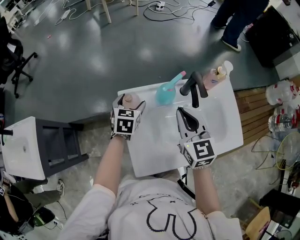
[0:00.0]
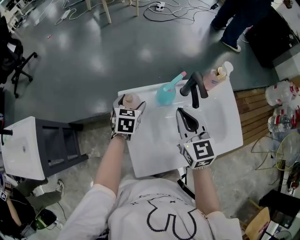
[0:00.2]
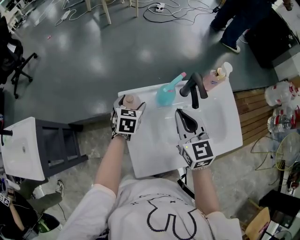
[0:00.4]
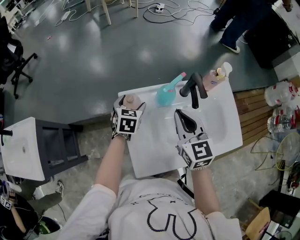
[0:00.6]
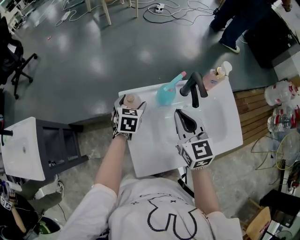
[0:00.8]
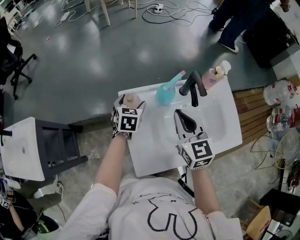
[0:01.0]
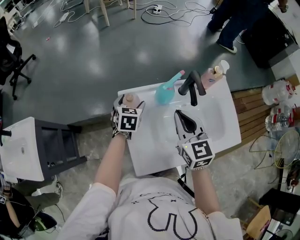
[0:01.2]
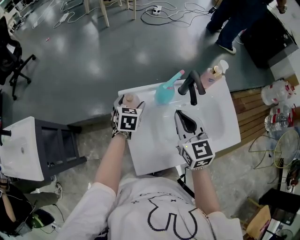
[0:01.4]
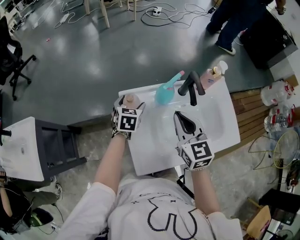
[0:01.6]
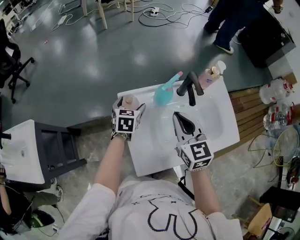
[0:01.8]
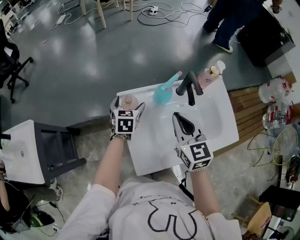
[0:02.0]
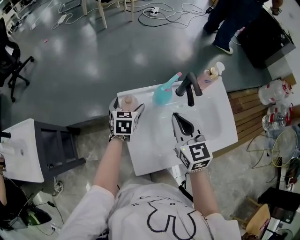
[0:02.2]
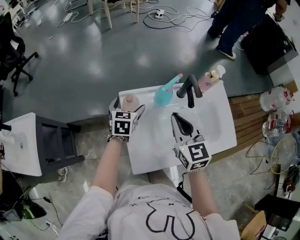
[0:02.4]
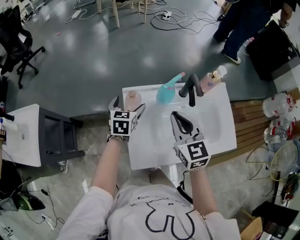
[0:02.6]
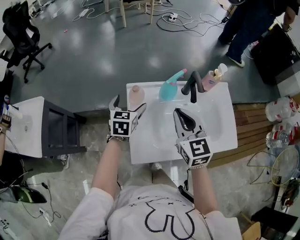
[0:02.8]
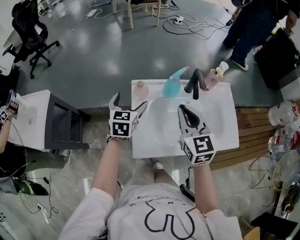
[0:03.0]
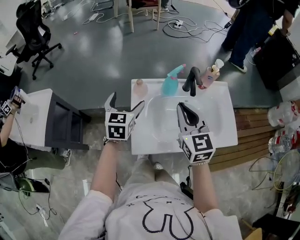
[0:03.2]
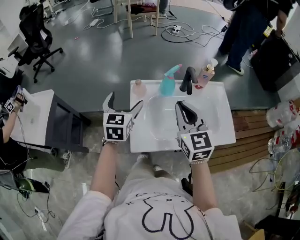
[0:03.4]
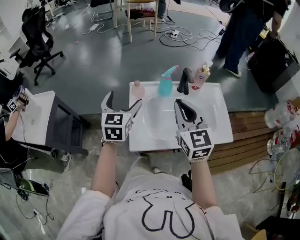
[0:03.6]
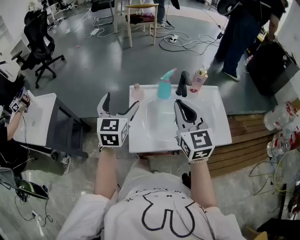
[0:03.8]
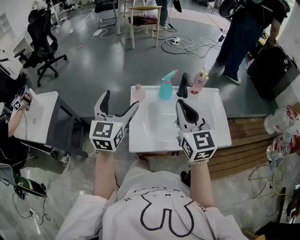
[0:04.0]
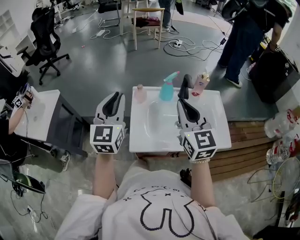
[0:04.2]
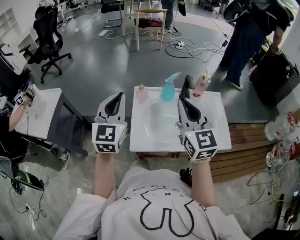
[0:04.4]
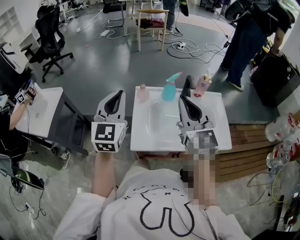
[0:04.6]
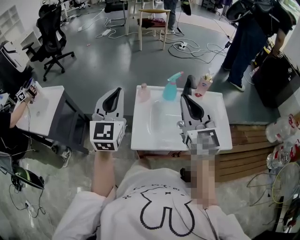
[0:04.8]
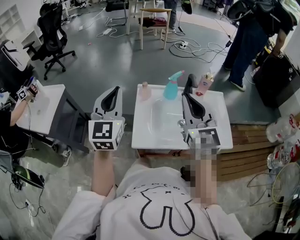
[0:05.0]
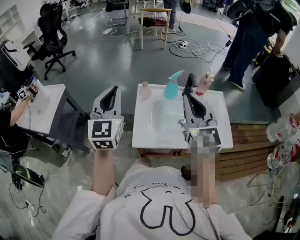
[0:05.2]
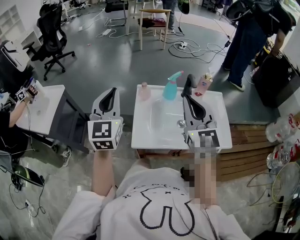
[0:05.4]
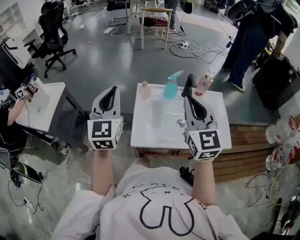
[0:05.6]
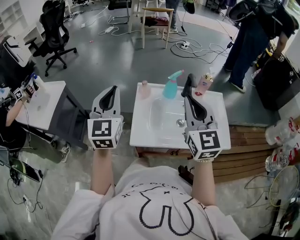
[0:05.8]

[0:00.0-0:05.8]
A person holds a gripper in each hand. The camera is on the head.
0:00.0 to 0:01.4: The grippers move only a little.
0:01.4 to 0:02.8: The left gripper is displaced upward and backward by approximately 10 cm.
0:02.8 to 0:04.4: The right gripper moves upward and backward, about 15 cm; the left gripper goes approximately 30 cm upward and backward, tilts its fingers approximately 30 degrees upward, and closes.
0:04.4 to 0:05.8: The grippers stay close to where they were, moving slightly.

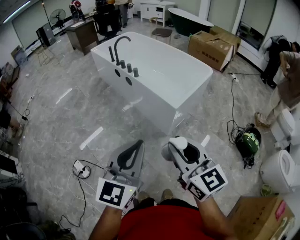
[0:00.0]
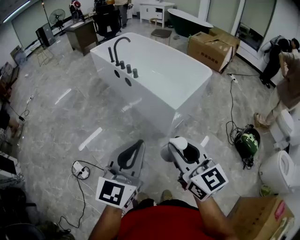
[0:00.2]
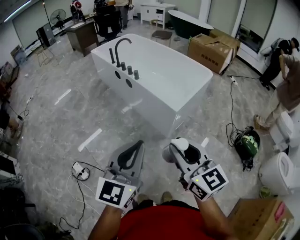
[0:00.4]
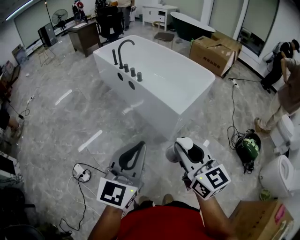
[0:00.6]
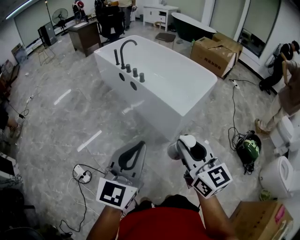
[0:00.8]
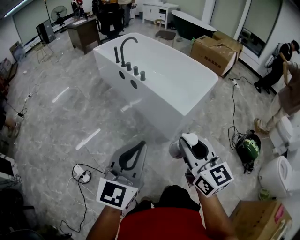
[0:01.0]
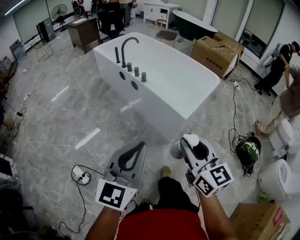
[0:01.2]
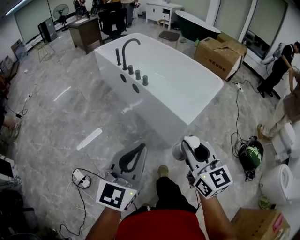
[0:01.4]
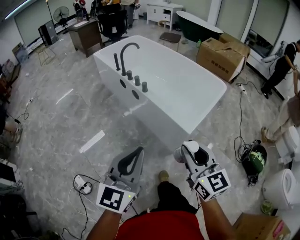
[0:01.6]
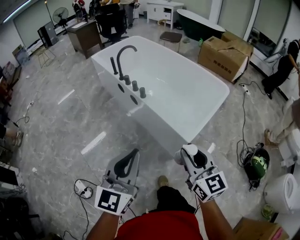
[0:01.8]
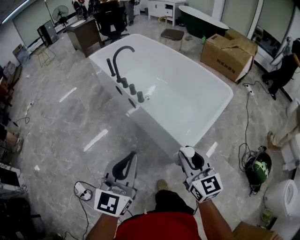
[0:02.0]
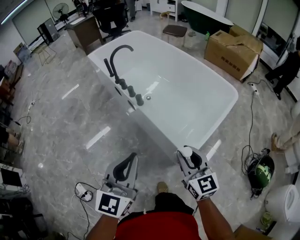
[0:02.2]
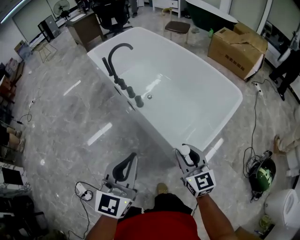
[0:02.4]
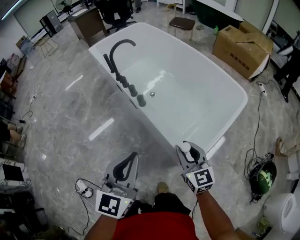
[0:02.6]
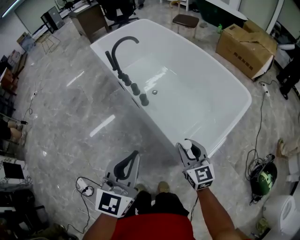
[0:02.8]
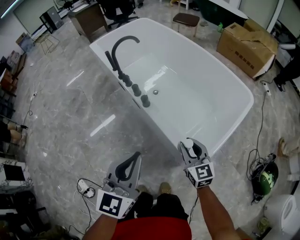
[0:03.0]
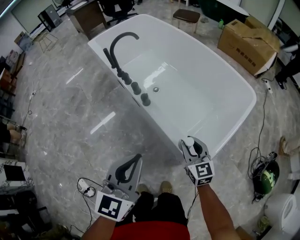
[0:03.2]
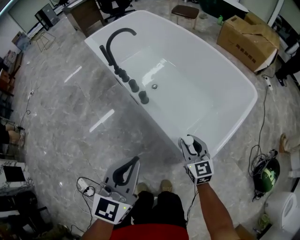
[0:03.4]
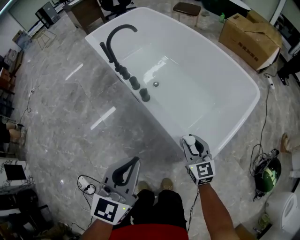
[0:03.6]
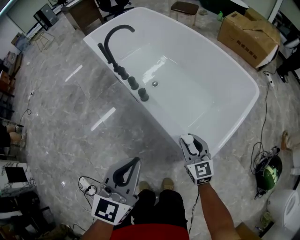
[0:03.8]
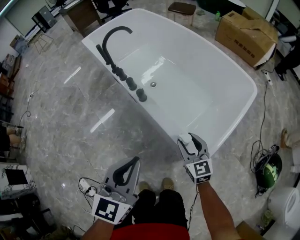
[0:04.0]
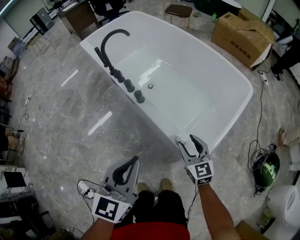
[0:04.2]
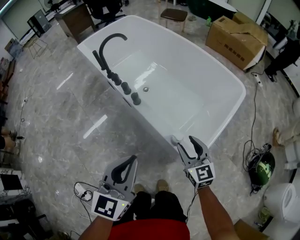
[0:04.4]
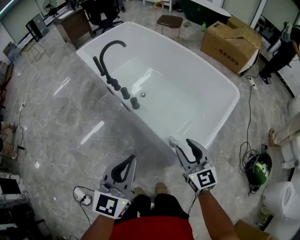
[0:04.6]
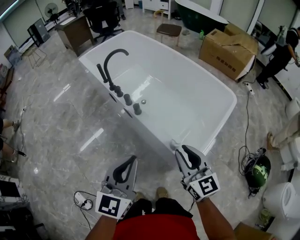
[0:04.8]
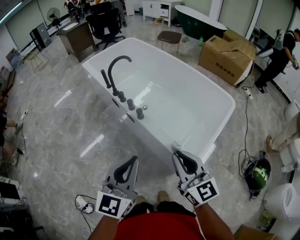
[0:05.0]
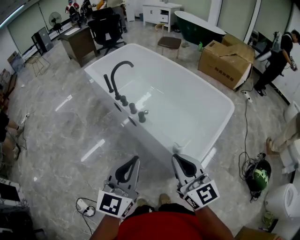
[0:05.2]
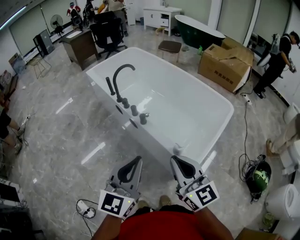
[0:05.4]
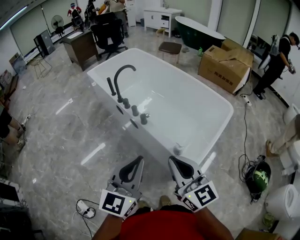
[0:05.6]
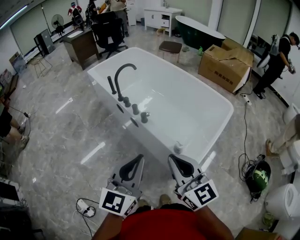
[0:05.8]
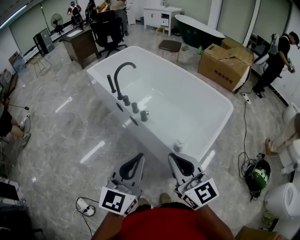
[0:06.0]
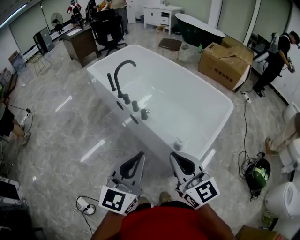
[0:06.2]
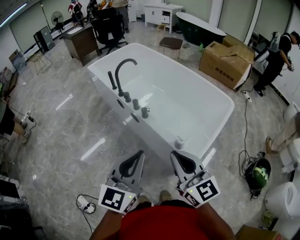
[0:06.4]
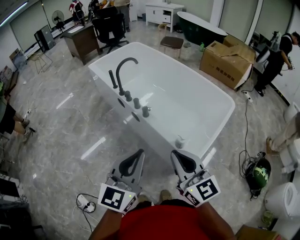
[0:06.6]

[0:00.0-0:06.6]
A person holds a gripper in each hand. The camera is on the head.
0:00.0 to 0:01.6: Both grippers move forward, some 20 cm.
0:01.6 to 0:03.2: The left gripper shifts about 30 cm forward. The right gripper heads forward and downward, covering about 40 cm.
0:03.2 to 0:05.0: The left gripper shifts approximately 10 cm upward; the right gripper travels upward and backward by roughly 25 cm, and opens, then closes again.
0:05.0 to 0:06.6: The left gripper moves about 5 cm; the right gripper travels backward by roughly 5 cm.

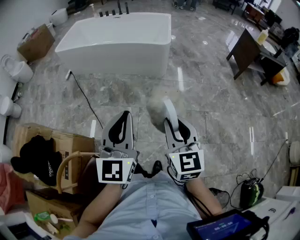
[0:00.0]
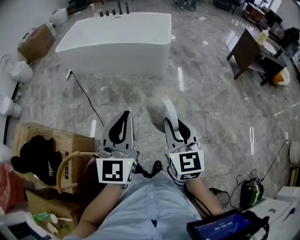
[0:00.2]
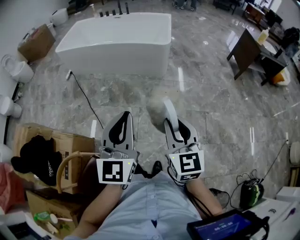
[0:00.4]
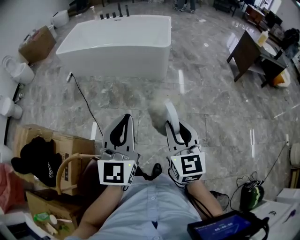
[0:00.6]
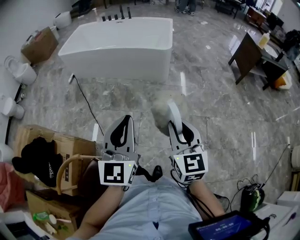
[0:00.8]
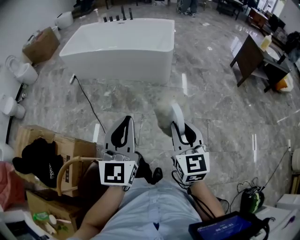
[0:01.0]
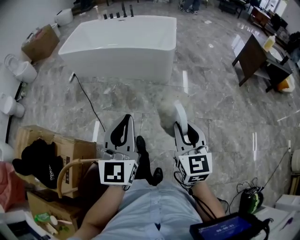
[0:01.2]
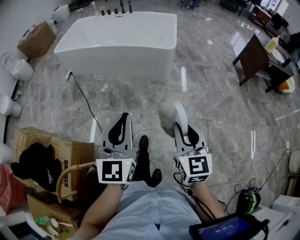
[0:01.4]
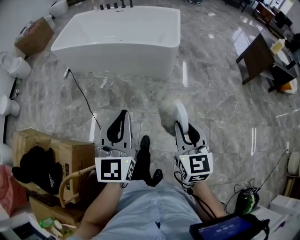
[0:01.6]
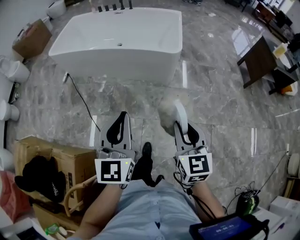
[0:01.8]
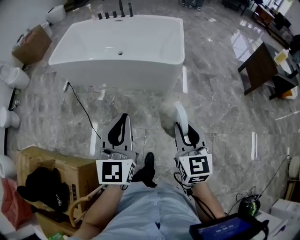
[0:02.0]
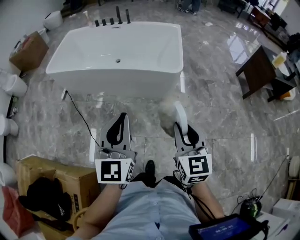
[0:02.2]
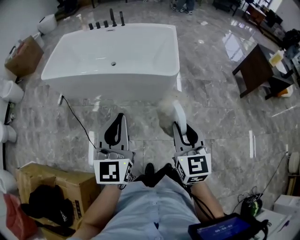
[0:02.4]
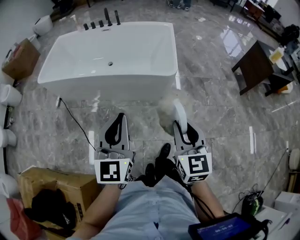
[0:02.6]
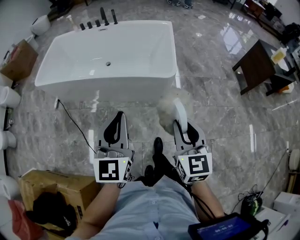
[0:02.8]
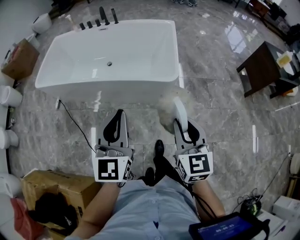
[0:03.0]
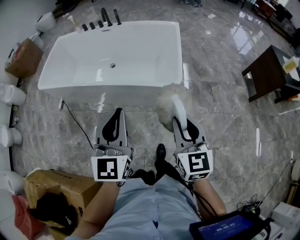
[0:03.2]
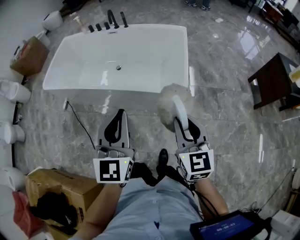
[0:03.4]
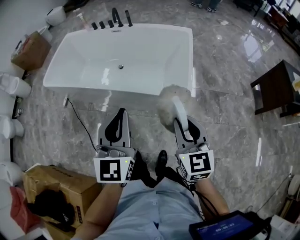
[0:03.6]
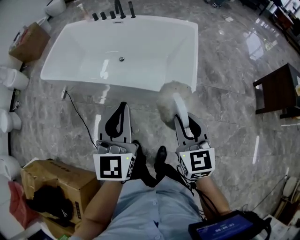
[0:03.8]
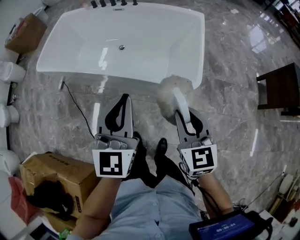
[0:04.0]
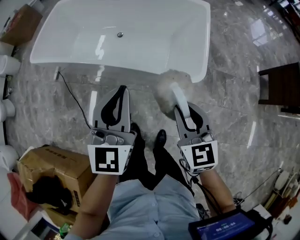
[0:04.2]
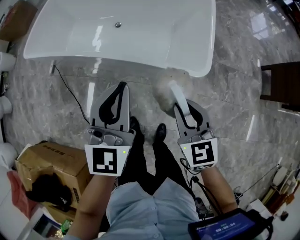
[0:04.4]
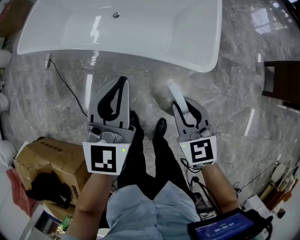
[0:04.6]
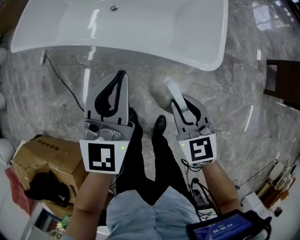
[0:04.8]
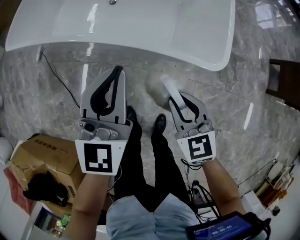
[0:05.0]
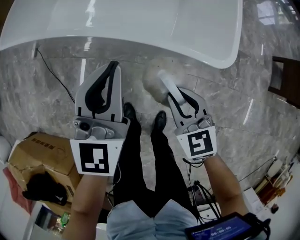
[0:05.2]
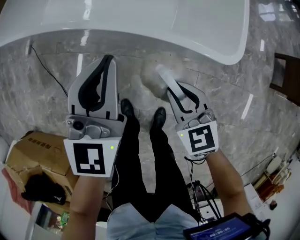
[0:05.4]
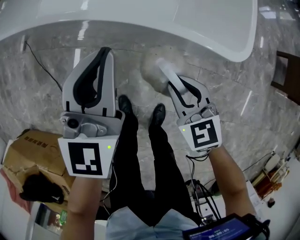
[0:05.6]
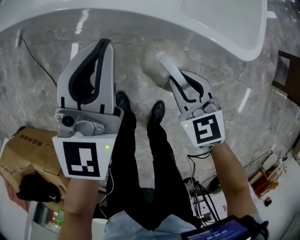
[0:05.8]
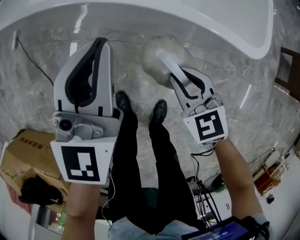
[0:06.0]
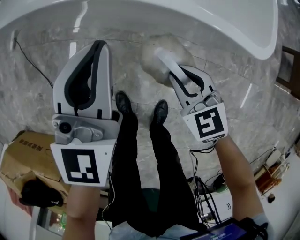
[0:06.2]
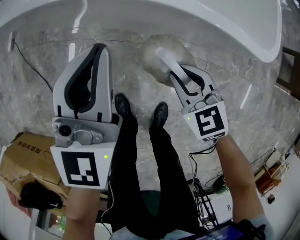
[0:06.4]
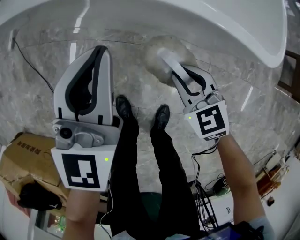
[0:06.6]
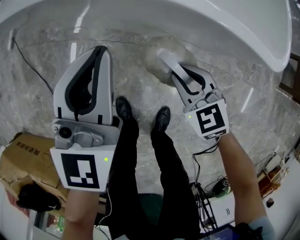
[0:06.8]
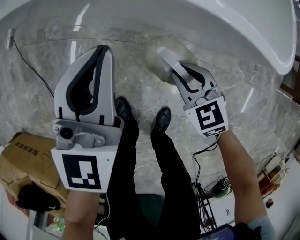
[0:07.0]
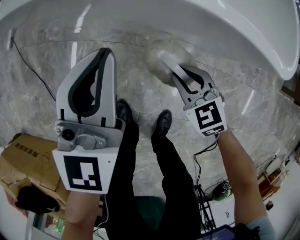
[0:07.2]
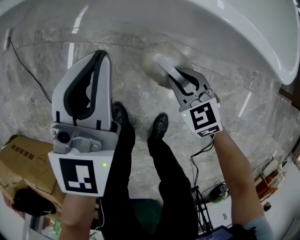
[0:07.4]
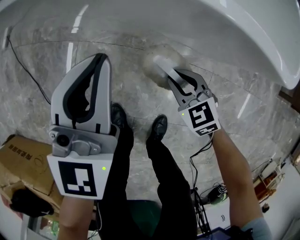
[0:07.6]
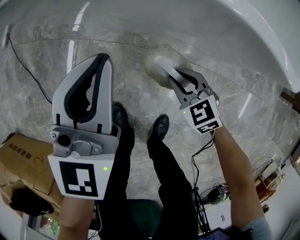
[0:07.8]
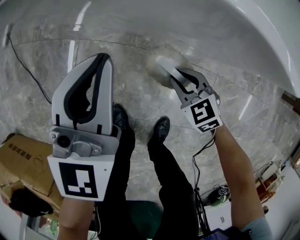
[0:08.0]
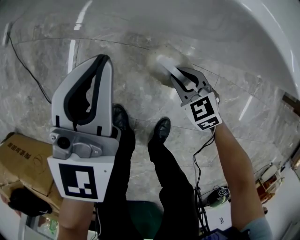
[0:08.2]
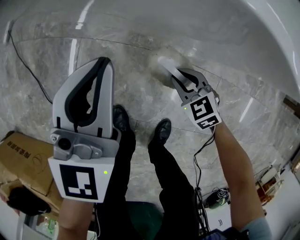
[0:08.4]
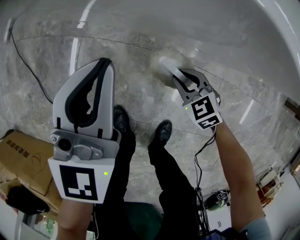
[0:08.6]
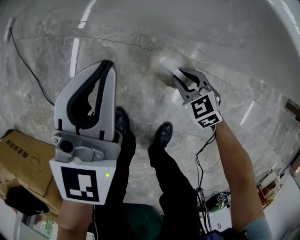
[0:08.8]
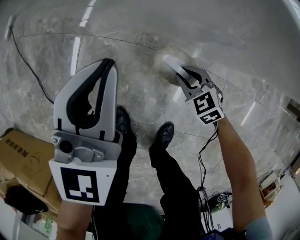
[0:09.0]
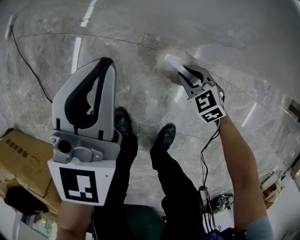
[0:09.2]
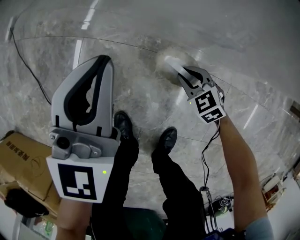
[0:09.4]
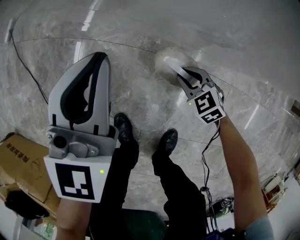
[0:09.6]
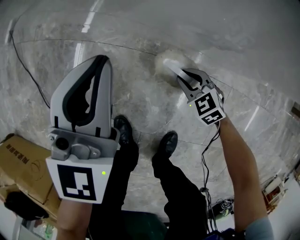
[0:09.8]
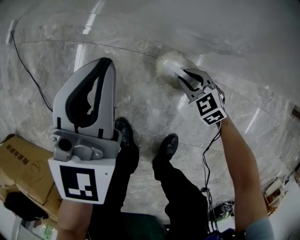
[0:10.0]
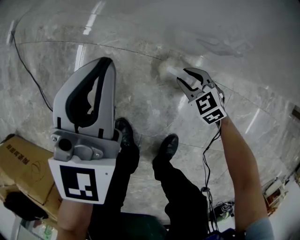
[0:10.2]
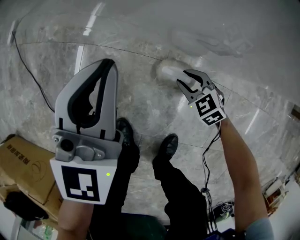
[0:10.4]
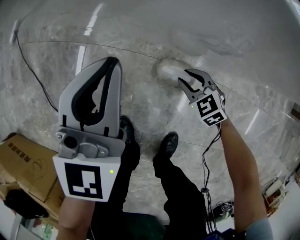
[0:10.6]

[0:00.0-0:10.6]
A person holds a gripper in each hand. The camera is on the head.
0:00.0 to 0:01.6: Both grippers move forward, about 20 cm.
0:01.6 to 0:03.0: Both grippers travel together forward, roughly 40 cm.
0:03.0 to 0:04.6: The two grippers go approximately 30 cm forward and downward. The right gripper rotates roughly 30 degrees.
0:04.6 to 0:06.0: Both grippers travel together downward, some 30 cm.
0:06.0 to 0:07.6: Both grippers move downward, roughly 15 cm.
0:07.6 to 0:09.0: The left gripper goes roughly 5 cm downward, while the right gripper goes some 15 cm downward.
0:09.0 to 0:10.6: There are only small adjustments of the grippers.

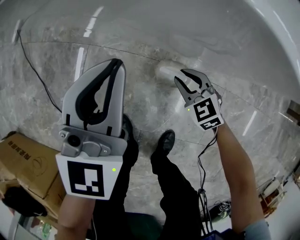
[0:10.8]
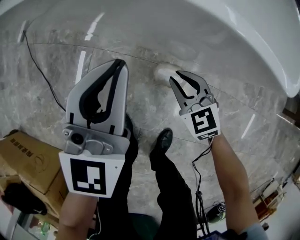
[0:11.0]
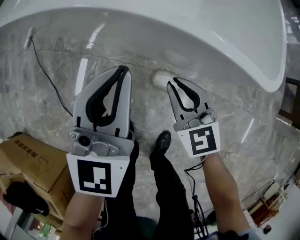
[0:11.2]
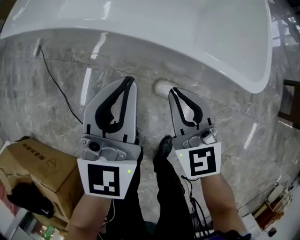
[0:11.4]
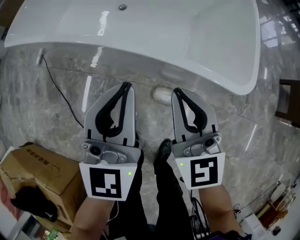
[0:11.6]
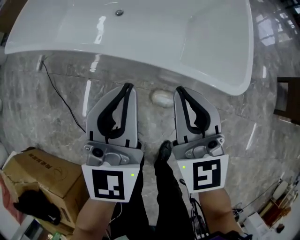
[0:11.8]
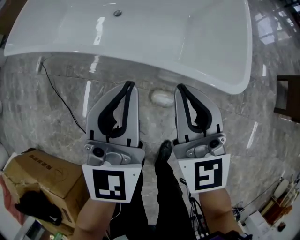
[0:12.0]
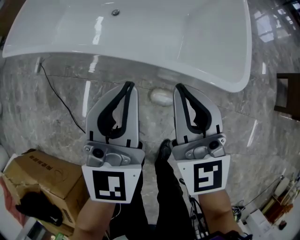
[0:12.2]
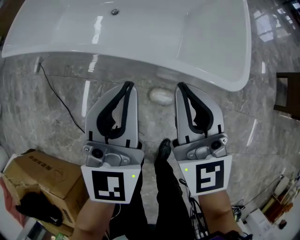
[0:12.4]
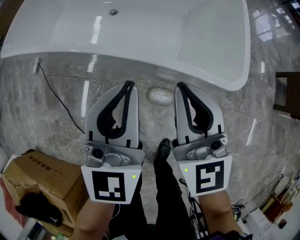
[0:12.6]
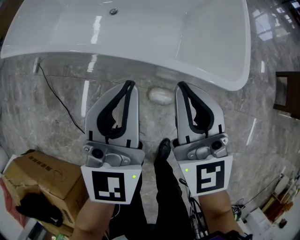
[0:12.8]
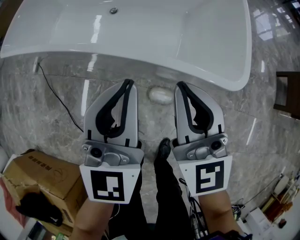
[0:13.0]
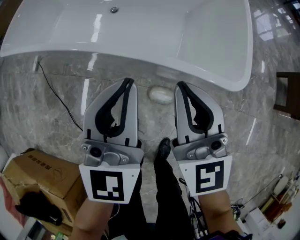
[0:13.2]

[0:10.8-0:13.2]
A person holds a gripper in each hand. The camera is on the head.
0:10.8 to 0:12.0: The right gripper travels upward by about 50 cm, points its fingers about 40 degrees further upward, and closes; the left gripper goes about 30 cm upward.
0:12.0 to 0:13.2: The two grippers keep their place.
